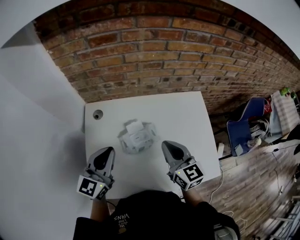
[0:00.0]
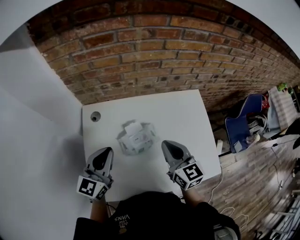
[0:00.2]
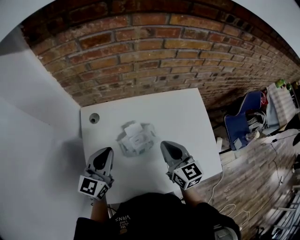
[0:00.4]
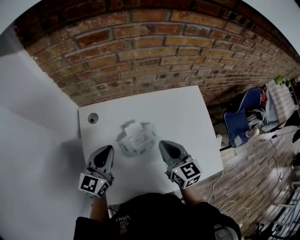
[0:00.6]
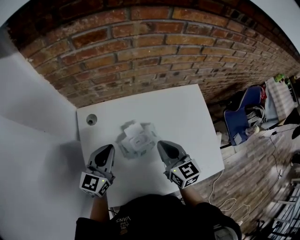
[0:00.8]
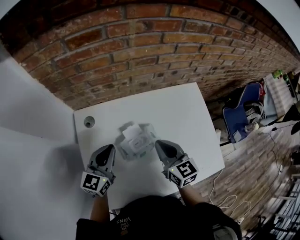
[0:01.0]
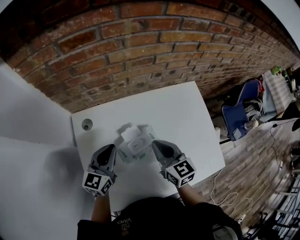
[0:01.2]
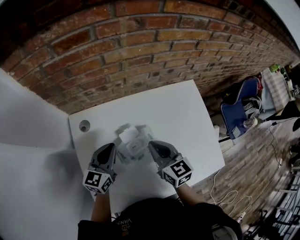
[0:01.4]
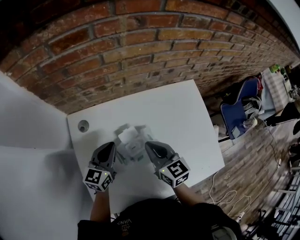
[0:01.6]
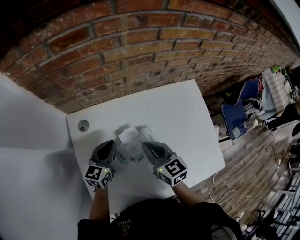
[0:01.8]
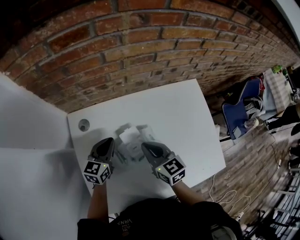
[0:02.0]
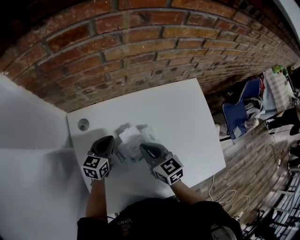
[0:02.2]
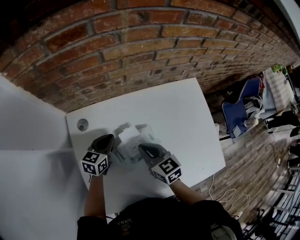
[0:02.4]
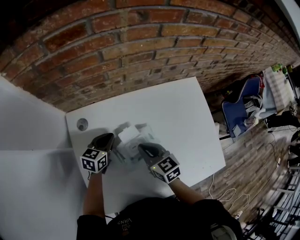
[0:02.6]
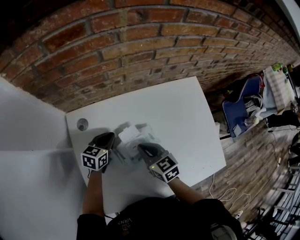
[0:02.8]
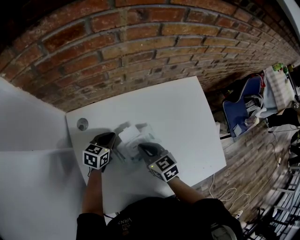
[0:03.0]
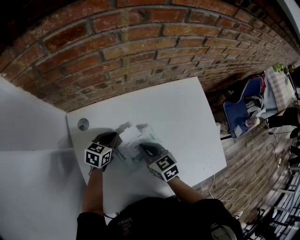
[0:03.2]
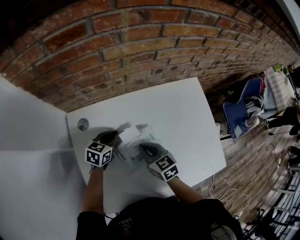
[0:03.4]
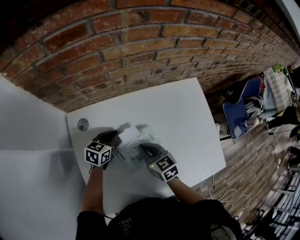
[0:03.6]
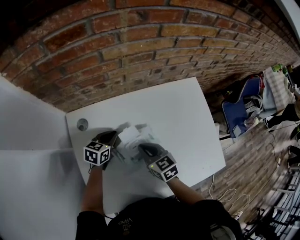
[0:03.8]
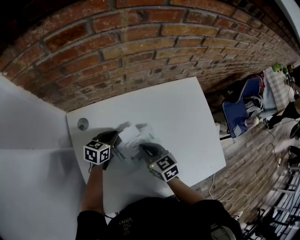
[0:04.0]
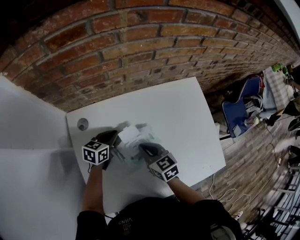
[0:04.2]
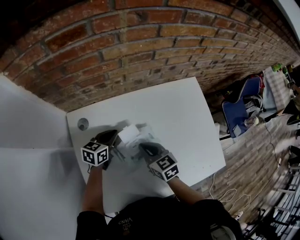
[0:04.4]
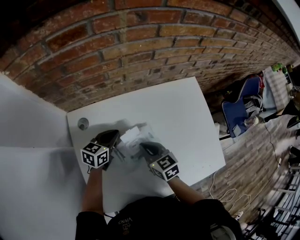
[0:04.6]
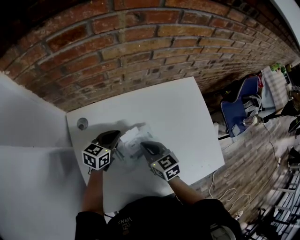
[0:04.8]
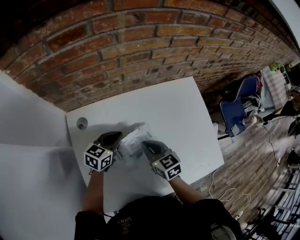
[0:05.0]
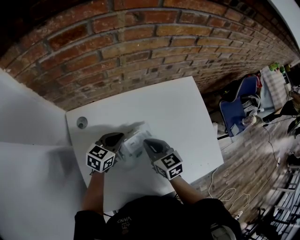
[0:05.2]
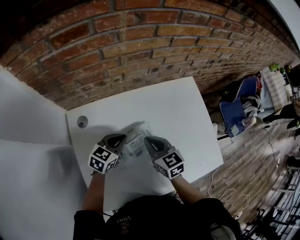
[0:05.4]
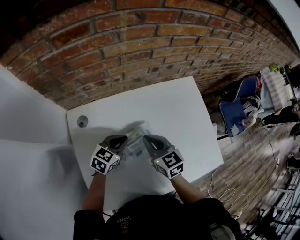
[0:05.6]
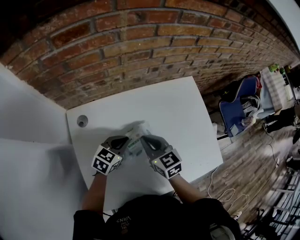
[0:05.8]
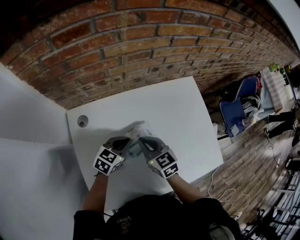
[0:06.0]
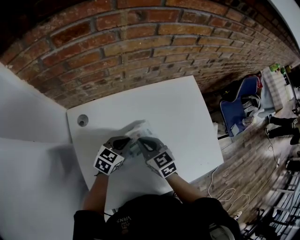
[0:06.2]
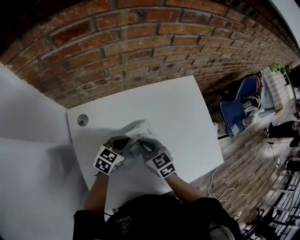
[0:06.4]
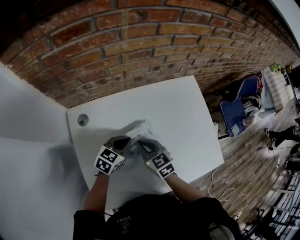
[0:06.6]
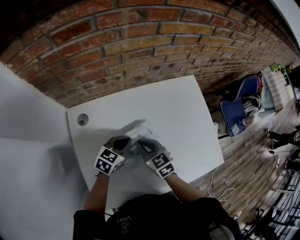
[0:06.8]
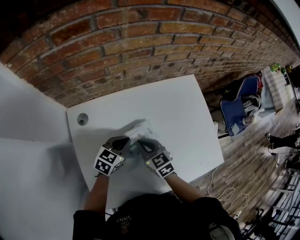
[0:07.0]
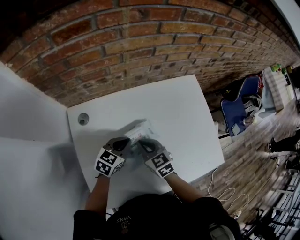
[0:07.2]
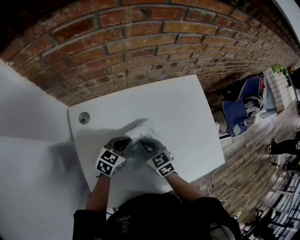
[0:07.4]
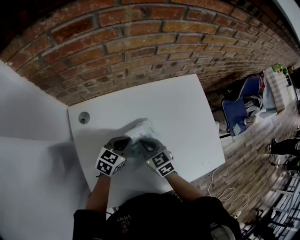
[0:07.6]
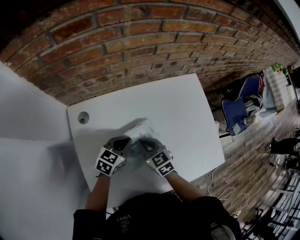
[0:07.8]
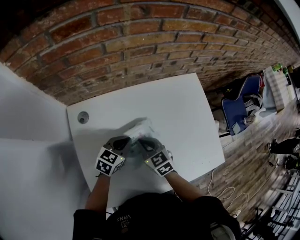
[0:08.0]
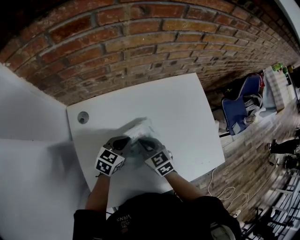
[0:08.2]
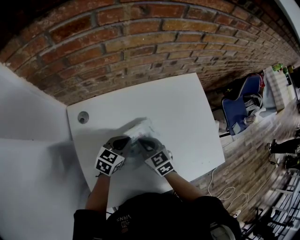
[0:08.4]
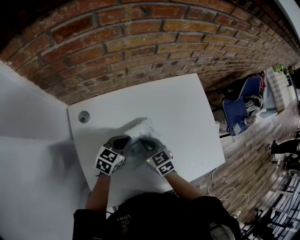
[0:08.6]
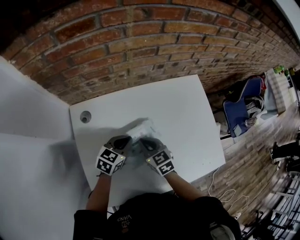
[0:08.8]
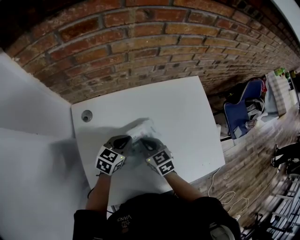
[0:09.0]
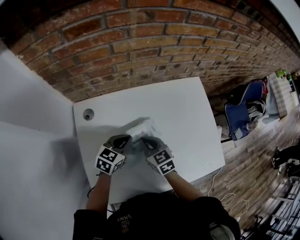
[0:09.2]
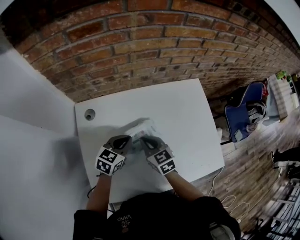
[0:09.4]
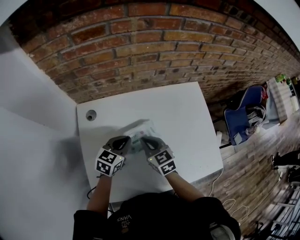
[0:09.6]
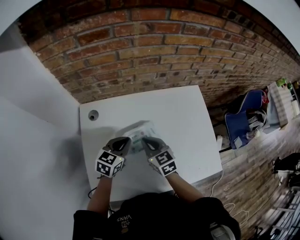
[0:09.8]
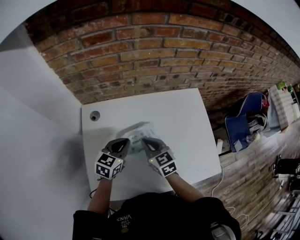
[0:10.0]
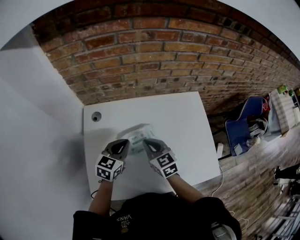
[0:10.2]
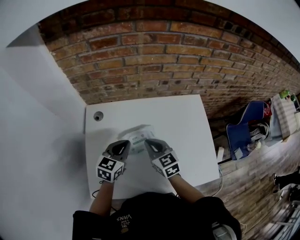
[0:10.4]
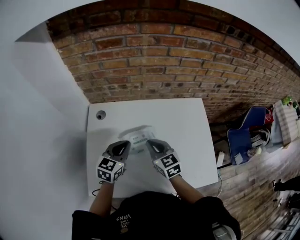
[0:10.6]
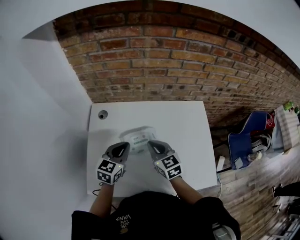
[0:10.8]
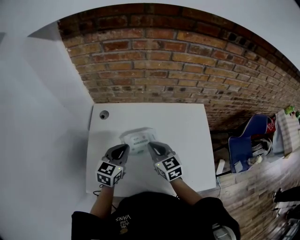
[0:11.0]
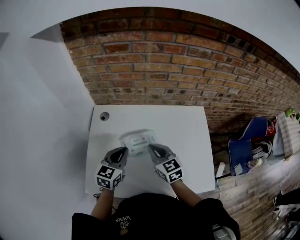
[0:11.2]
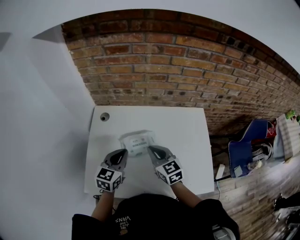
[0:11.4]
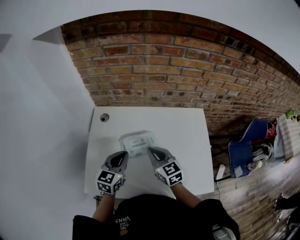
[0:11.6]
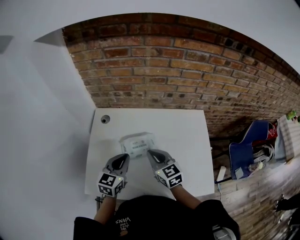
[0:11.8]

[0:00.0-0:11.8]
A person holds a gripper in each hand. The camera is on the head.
0:00.0 to 0:01.4: The right gripper travels downward and forward by roughly 10 cm, while the left gripper travels downward and forward by roughly 15 cm.
0:01.4 to 0:03.0: The left gripper travels downward and forward by roughly 15 cm, and swivels about 30 degrees; the right gripper heads downward, covering roughly 10 cm.
0:03.0 to 0:04.4: The grippers stay close to where they were, moving slightly.
0:04.4 to 0:06.0: The left gripper shifts some 10 cm to the right and backward, and swivels approximately 20 degrees.
0:06.0 to 0:07.4: The right gripper travels downward by some 5 cm.
0:07.4 to 0:08.8: The two grippers keep their place.
0:08.8 to 0:10.4: Both grippers travel together upward, roughly 10 cm. The left gripper turns by roughly 20 degrees.
0:10.4 to 0:11.8: The right gripper ends up about 5 cm from where it was. The left gripper shifts some 5 cm backward.

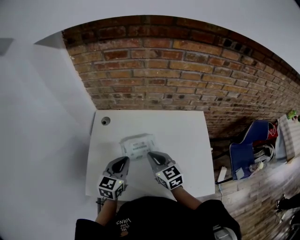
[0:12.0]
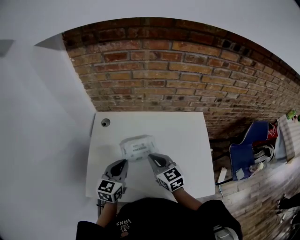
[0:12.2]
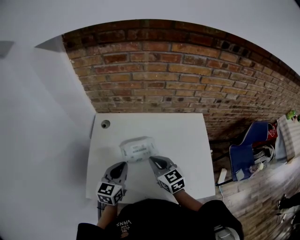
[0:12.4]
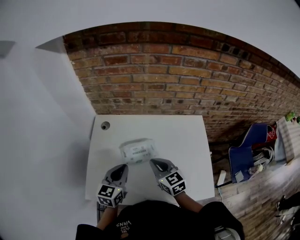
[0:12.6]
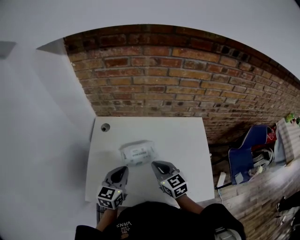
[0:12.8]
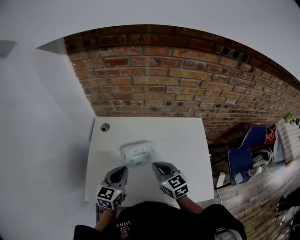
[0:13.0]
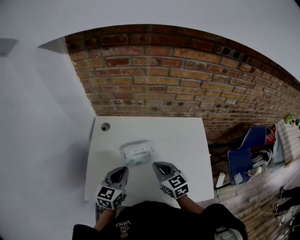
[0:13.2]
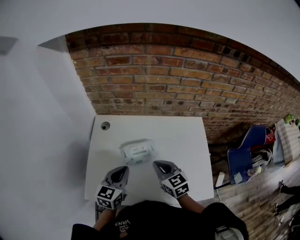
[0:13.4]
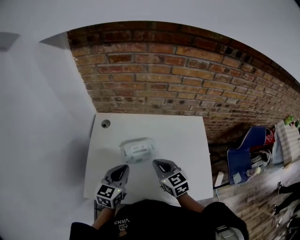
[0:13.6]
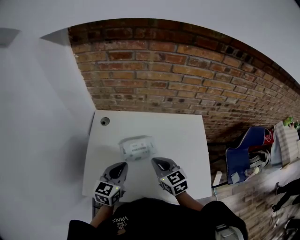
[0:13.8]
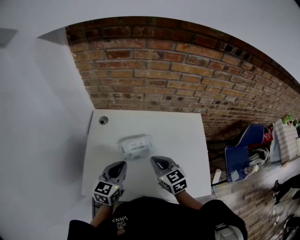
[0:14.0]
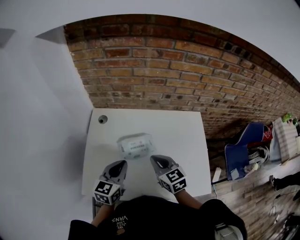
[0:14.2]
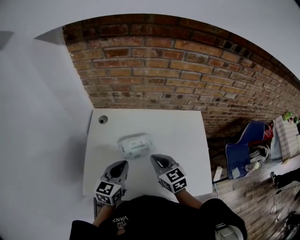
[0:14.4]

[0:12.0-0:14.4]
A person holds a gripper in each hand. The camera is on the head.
0:12.0 to 0:13.2: The grippers make only small movements.
0:13.2 to 0:14.4: Both grippers stay about where they are.

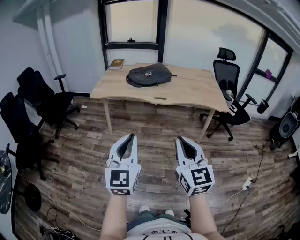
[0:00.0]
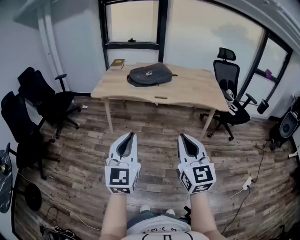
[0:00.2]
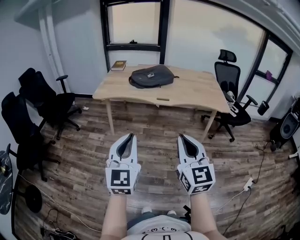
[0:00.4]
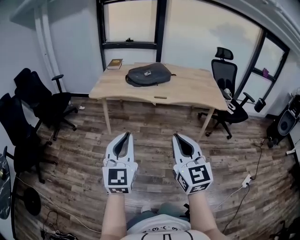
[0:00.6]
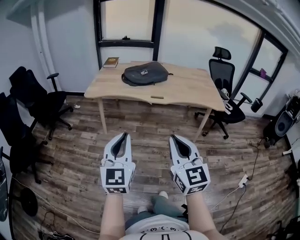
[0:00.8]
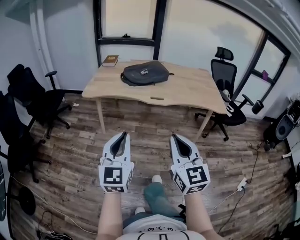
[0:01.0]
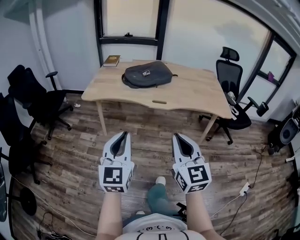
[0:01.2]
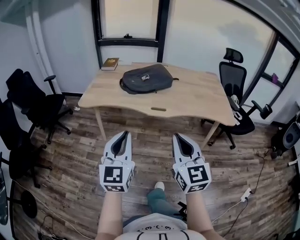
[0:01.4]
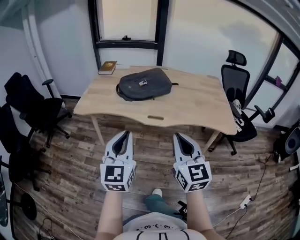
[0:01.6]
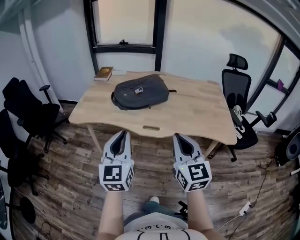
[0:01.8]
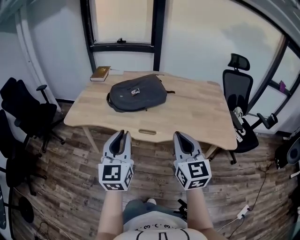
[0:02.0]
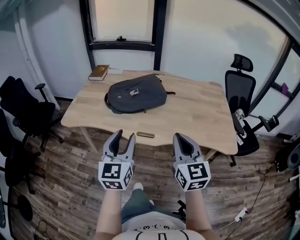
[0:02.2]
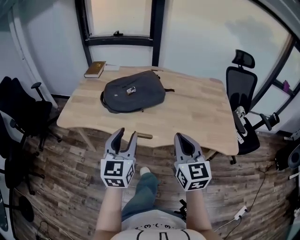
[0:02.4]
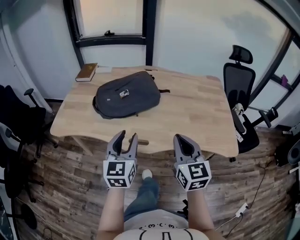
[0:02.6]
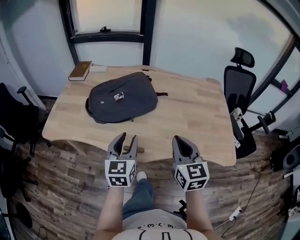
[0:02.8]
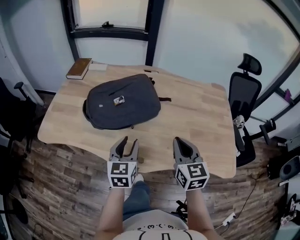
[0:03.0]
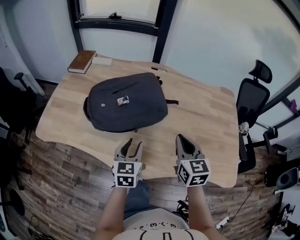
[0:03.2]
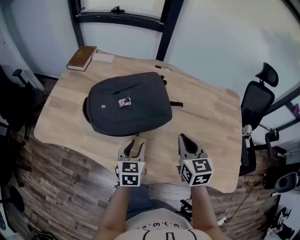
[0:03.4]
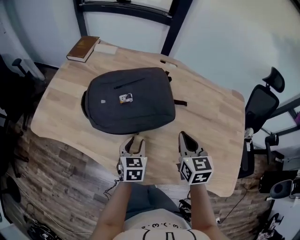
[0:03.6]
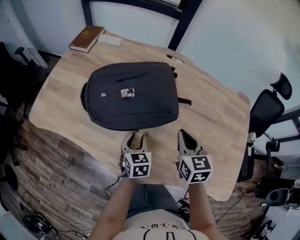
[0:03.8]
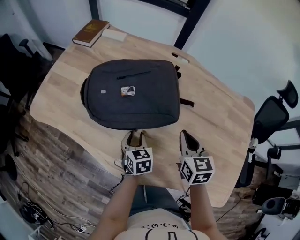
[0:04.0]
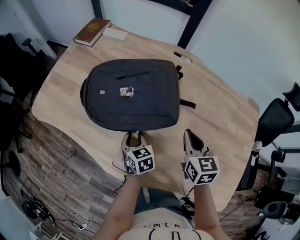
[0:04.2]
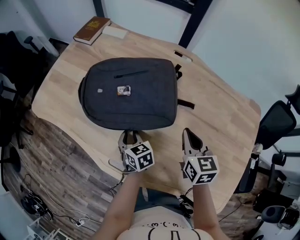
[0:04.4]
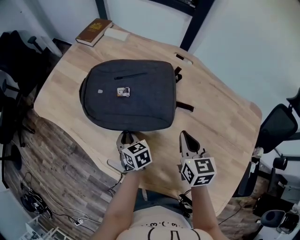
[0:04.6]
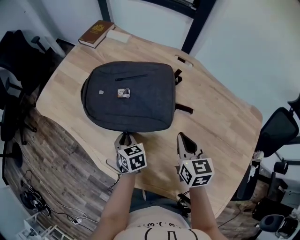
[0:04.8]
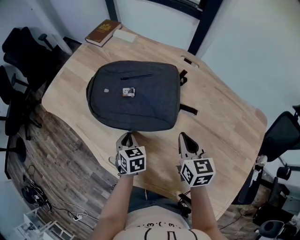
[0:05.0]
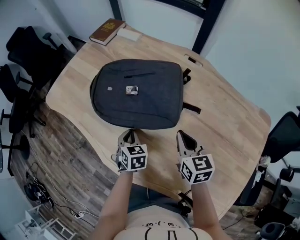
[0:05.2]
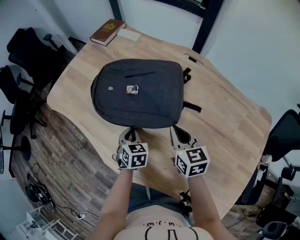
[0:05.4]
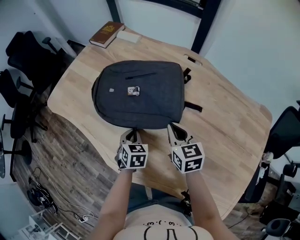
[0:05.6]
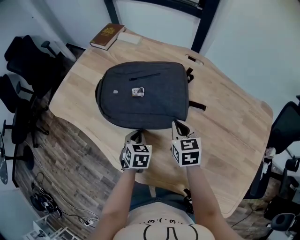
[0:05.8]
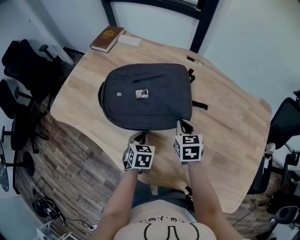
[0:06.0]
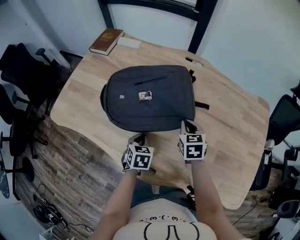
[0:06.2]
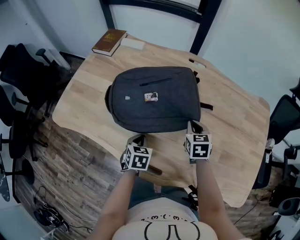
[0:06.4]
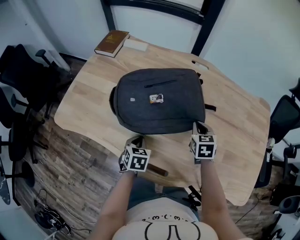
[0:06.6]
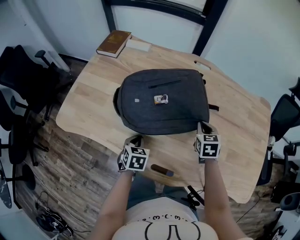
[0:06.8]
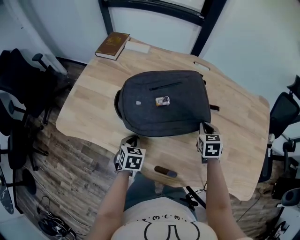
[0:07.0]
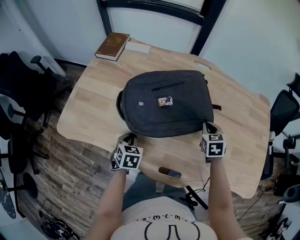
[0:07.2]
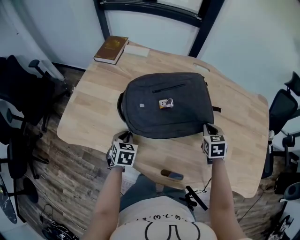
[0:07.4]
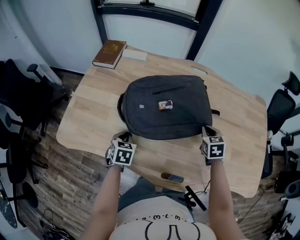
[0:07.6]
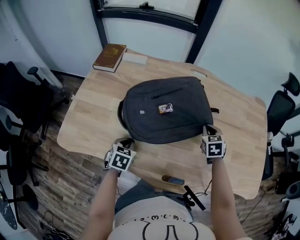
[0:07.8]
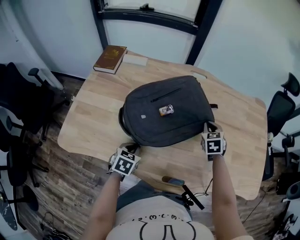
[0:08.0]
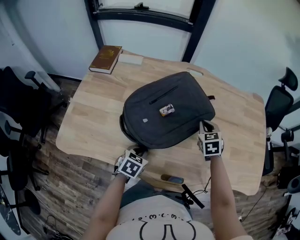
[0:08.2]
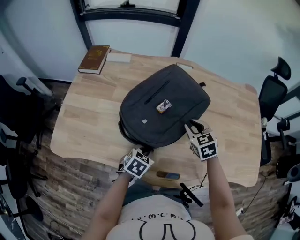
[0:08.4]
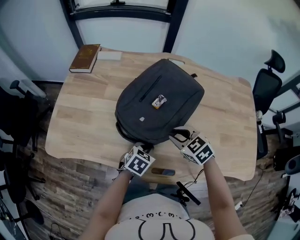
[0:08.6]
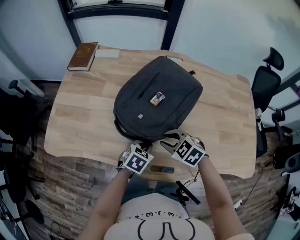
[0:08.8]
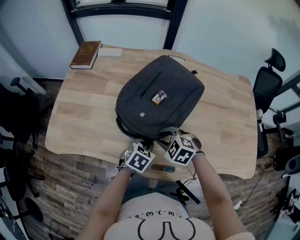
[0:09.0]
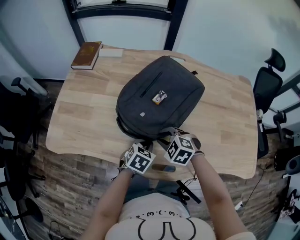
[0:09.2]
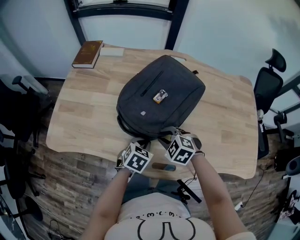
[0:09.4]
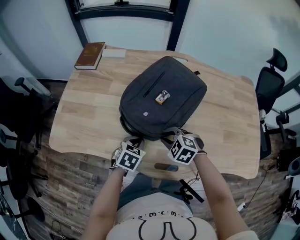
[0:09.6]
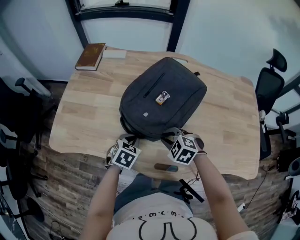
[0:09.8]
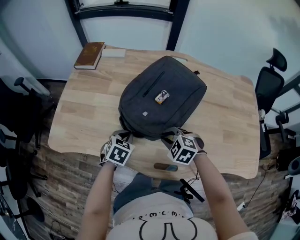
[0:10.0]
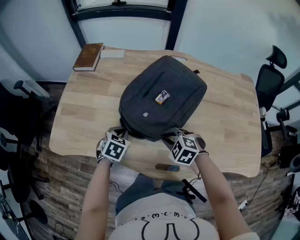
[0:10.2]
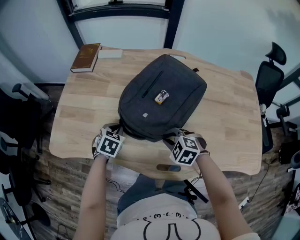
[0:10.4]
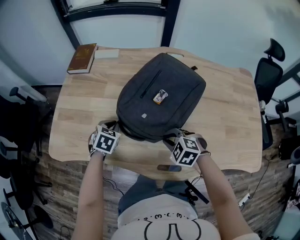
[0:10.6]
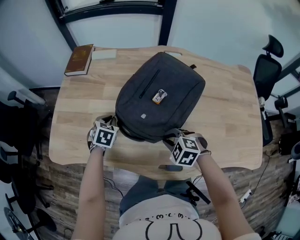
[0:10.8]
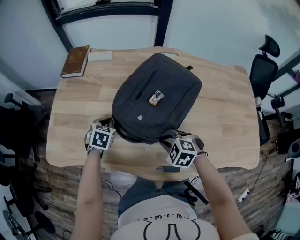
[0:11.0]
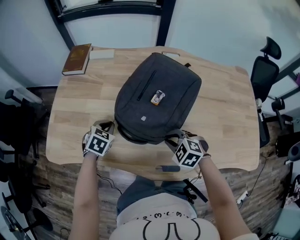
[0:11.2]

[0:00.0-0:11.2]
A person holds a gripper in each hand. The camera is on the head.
0:00.0 to 0:01.6: Both grippers travel together forward, some 30 cm.
0:01.6 to 0:03.2: The two grippers travel together, forward, roughly 40 cm. The right gripper changes its angle by some 20 degrees. Meanwhile the left gripper shifts some 20 cm downward, changes its angle by about 30 degrees, and opens its fingers.
0:03.2 to 0:04.8: The right gripper changes place by approximately 15 cm, and swivels roughly 20 degrees; the left gripper heads downward, covering approximately 15 cm, rotates approximately 50 degrees, and closes.
0:04.8 to 0:06.4: The left gripper moves roughly 5 cm, and swivels about 30 degrees, while the right gripper ends up roughly 10 cm from where it was, and turns by approximately 20 degrees.
0:06.4 to 0:08.0: The left gripper travels to the left by about 10 cm, and changes its angle by some 20 degrees.
0:08.0 to 0:09.6: The left gripper goes about 10 cm to the right. The right gripper shifts some 20 cm backward and to the left, and rotates approximately 50 degrees.
0:09.6 to 0:11.2: The left gripper heads forward and to the left, covering some 15 cm.
